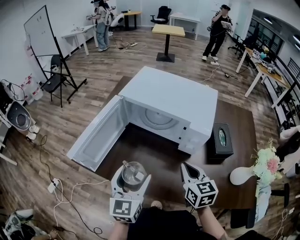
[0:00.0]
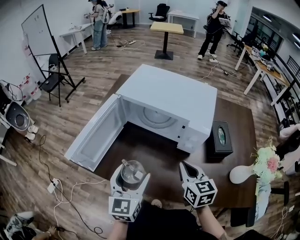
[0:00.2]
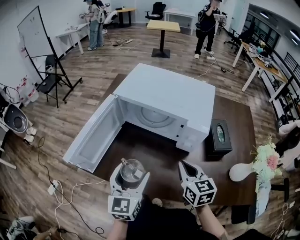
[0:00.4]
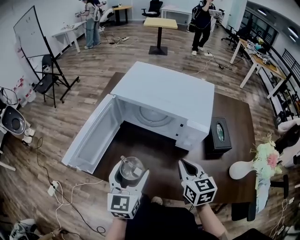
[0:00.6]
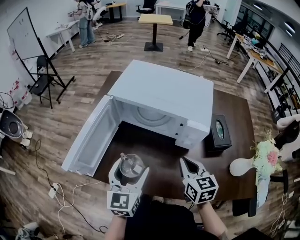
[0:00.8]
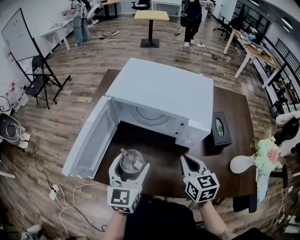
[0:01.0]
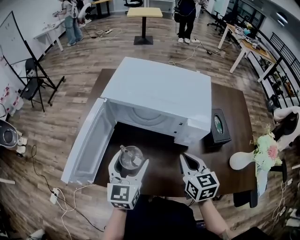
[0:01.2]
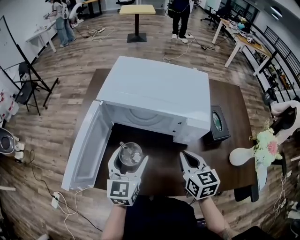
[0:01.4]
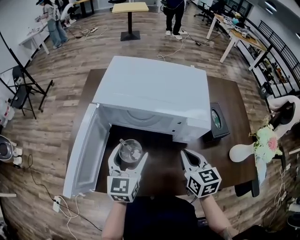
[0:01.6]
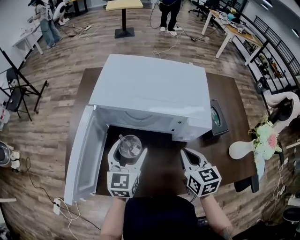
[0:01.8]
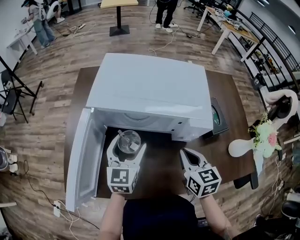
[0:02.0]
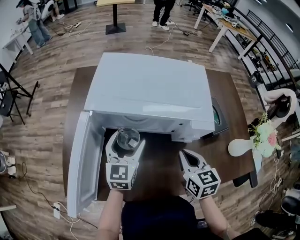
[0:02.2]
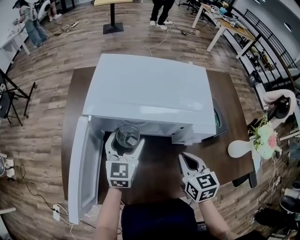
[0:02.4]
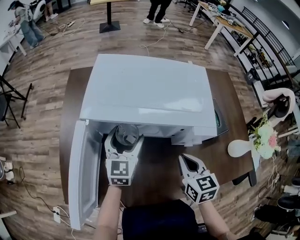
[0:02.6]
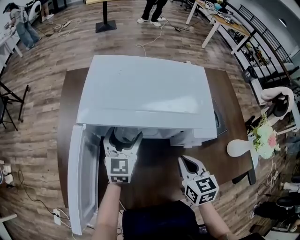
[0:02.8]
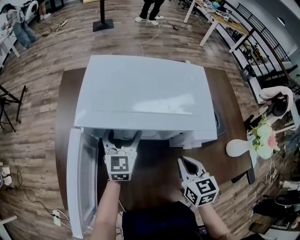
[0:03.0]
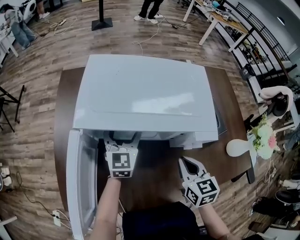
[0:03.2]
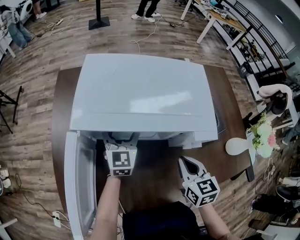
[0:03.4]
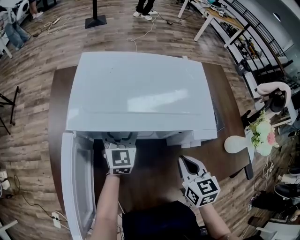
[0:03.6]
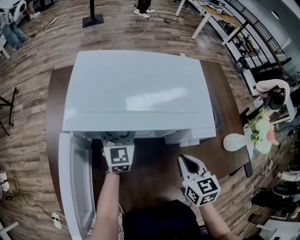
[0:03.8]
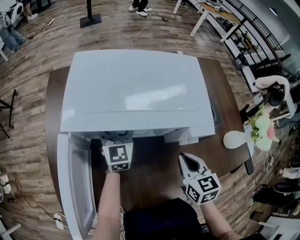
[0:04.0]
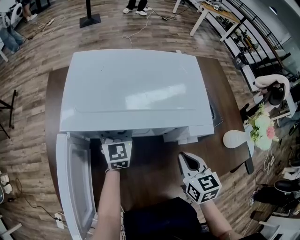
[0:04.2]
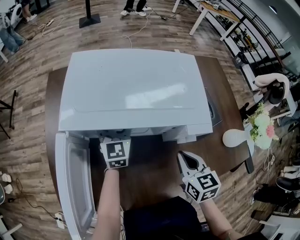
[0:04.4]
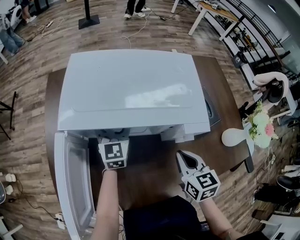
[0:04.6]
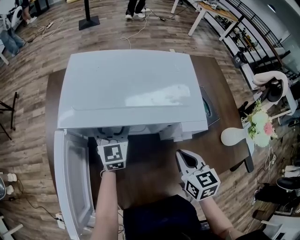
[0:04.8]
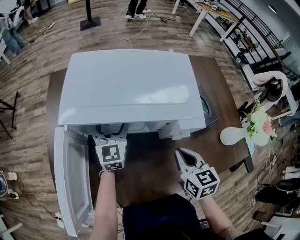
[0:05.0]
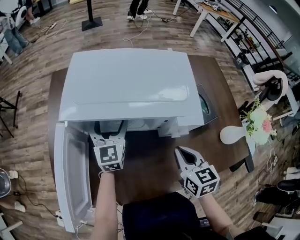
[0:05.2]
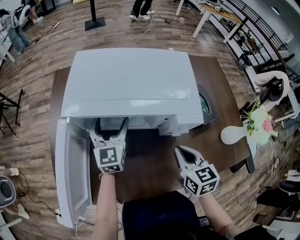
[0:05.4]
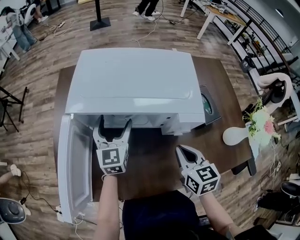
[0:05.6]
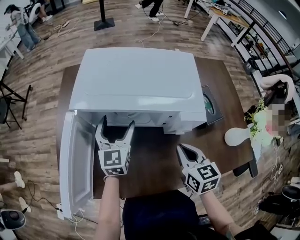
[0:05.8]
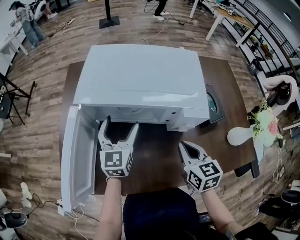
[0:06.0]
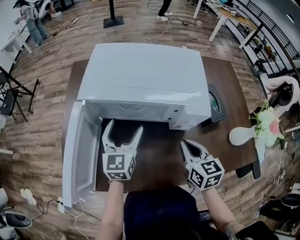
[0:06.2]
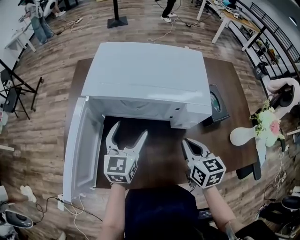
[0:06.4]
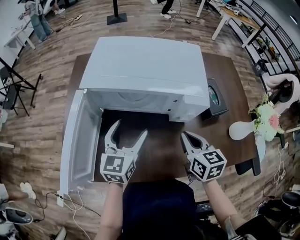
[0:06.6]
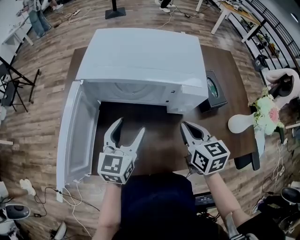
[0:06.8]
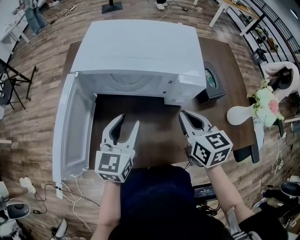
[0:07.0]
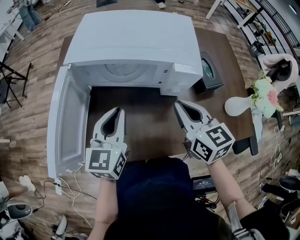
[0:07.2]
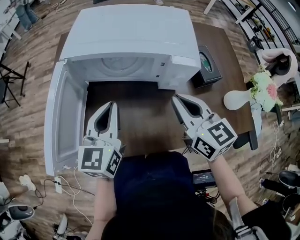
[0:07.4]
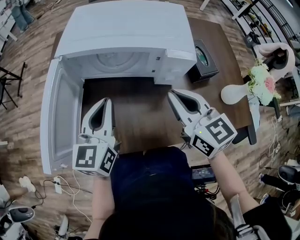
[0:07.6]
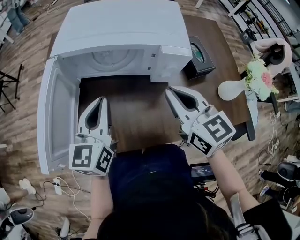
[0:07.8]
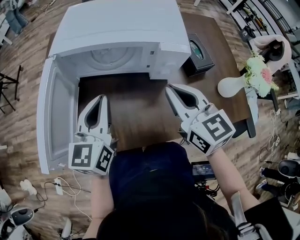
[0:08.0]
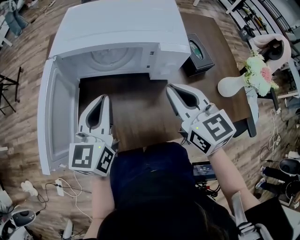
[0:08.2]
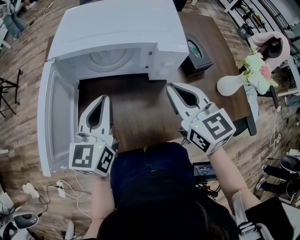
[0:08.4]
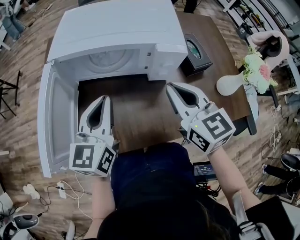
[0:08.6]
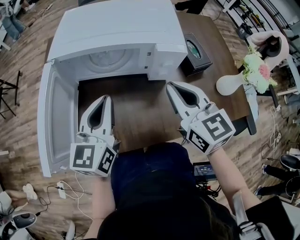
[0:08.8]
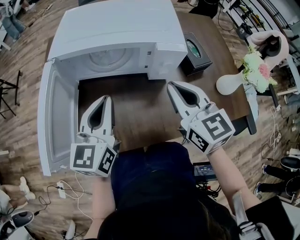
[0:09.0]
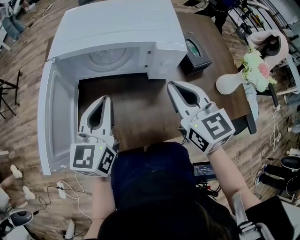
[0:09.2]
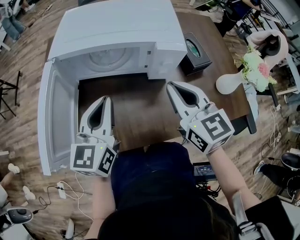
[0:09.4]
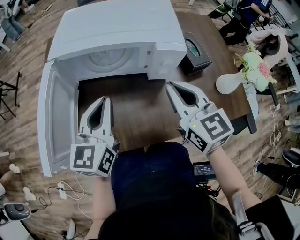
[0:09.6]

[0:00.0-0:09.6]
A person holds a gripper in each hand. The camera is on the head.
0:00.0 to 0:01.6: The left gripper is displaced forward by approximately 15 cm. The right gripper heads forward, covering some 5 cm.
0:01.6 to 0:03.2: The left gripper heads forward, covering about 20 cm.
0:03.2 to 0:04.8: The grippers make only small movements.
0:04.8 to 0:06.4: The left gripper heads backward, covering some 15 cm.
0:06.4 to 0:08.0: The right gripper heads upward, covering about 10 cm, and changes its angle by roughly 20 degrees, while the left gripper heads backward and upward, covering roughly 10 cm, and closes.
0:08.0 to 0:09.6: The grippers move only a little.

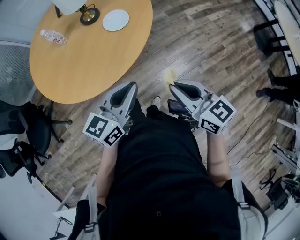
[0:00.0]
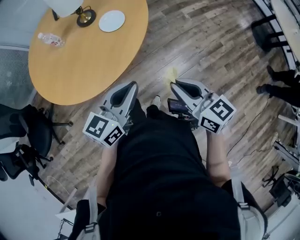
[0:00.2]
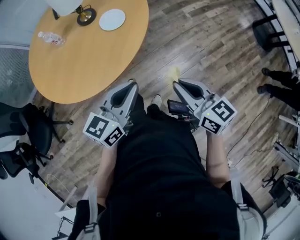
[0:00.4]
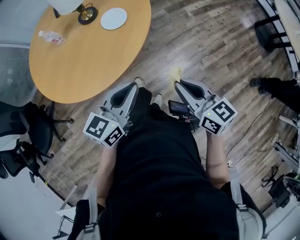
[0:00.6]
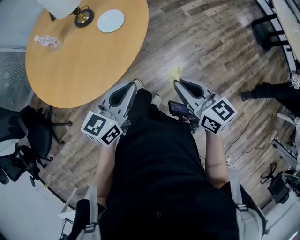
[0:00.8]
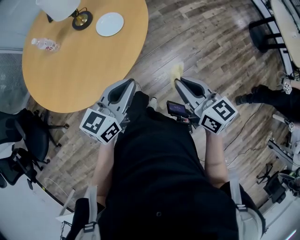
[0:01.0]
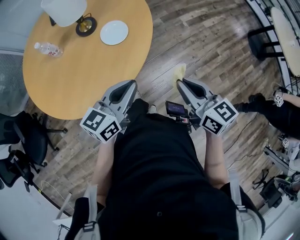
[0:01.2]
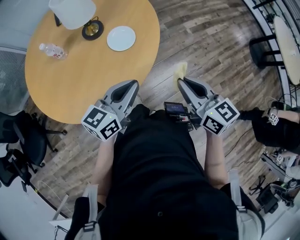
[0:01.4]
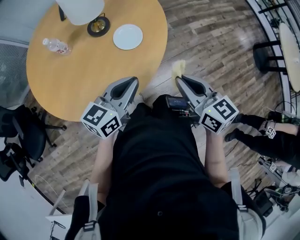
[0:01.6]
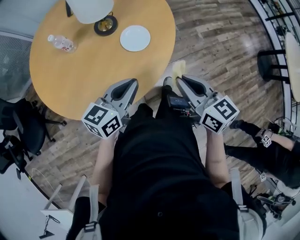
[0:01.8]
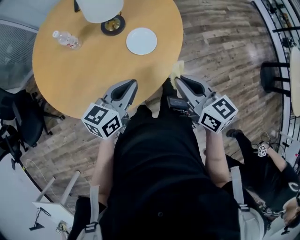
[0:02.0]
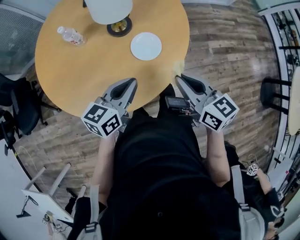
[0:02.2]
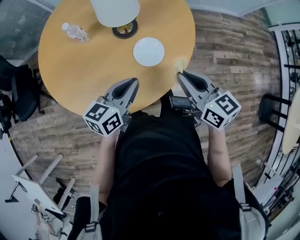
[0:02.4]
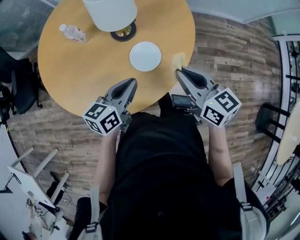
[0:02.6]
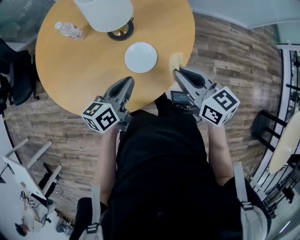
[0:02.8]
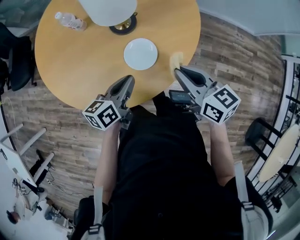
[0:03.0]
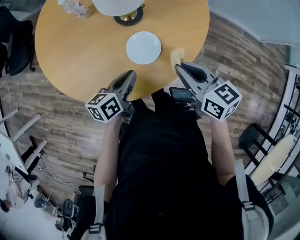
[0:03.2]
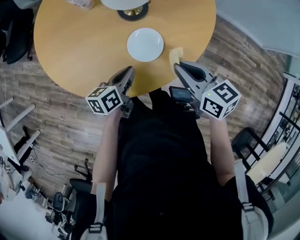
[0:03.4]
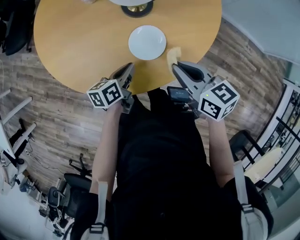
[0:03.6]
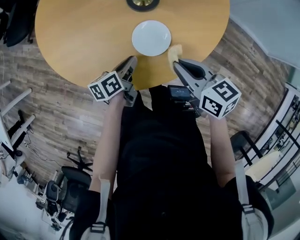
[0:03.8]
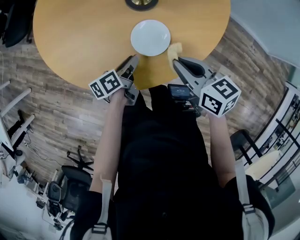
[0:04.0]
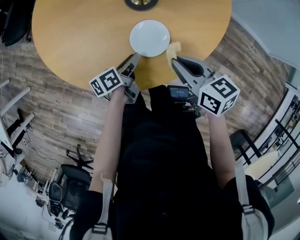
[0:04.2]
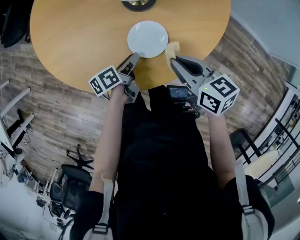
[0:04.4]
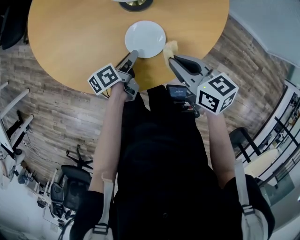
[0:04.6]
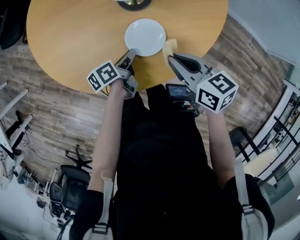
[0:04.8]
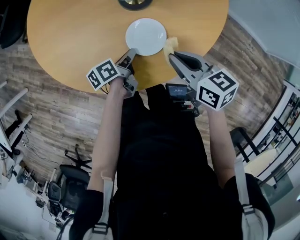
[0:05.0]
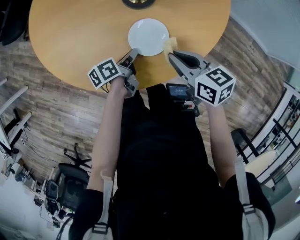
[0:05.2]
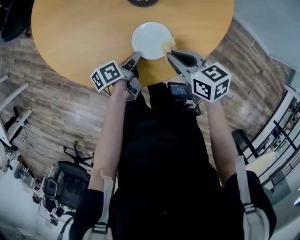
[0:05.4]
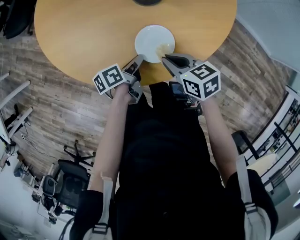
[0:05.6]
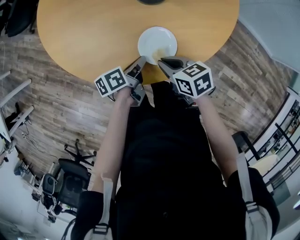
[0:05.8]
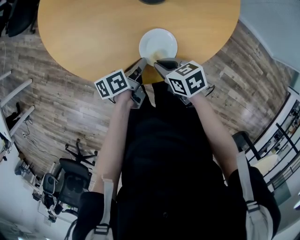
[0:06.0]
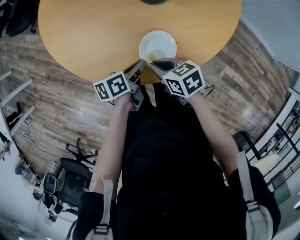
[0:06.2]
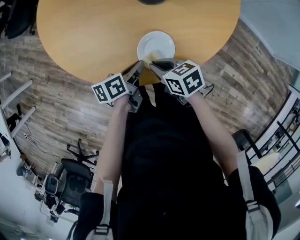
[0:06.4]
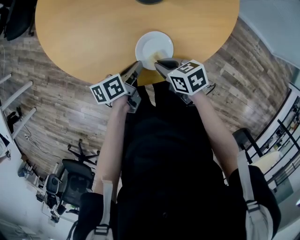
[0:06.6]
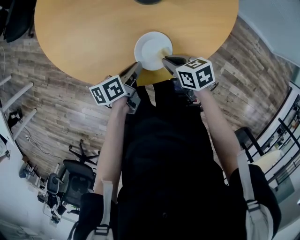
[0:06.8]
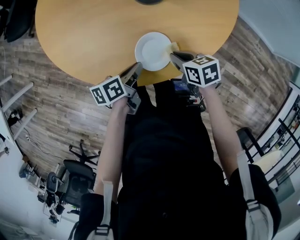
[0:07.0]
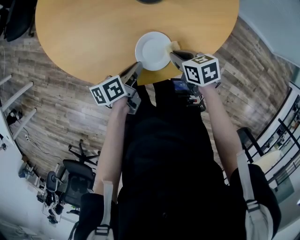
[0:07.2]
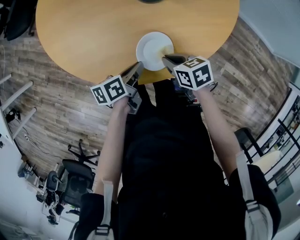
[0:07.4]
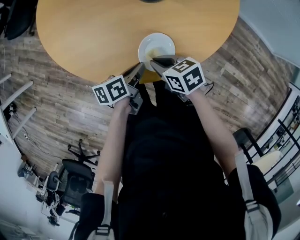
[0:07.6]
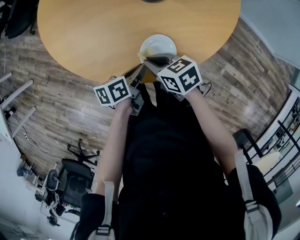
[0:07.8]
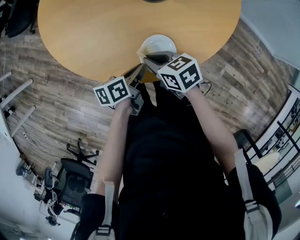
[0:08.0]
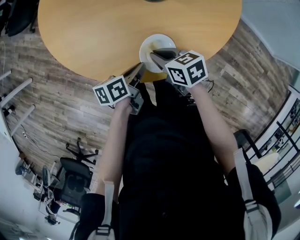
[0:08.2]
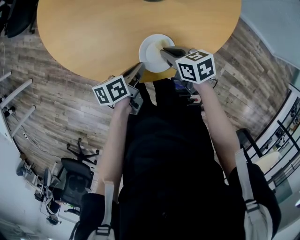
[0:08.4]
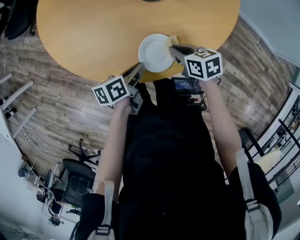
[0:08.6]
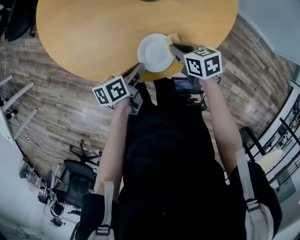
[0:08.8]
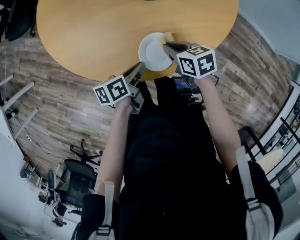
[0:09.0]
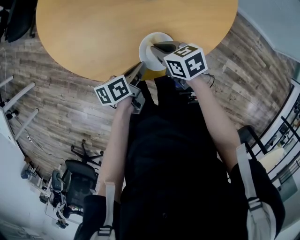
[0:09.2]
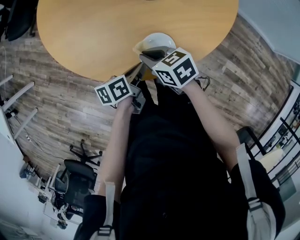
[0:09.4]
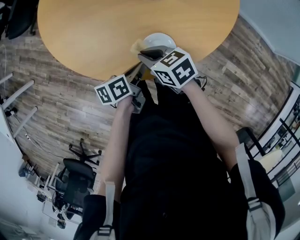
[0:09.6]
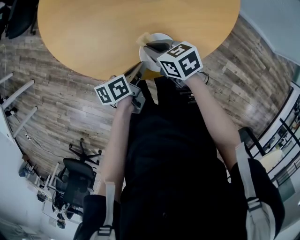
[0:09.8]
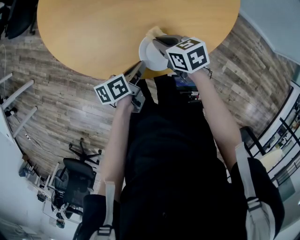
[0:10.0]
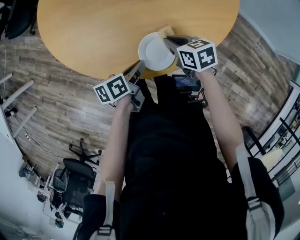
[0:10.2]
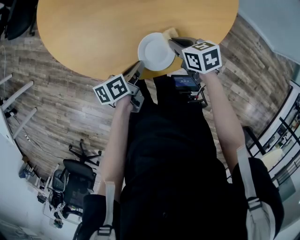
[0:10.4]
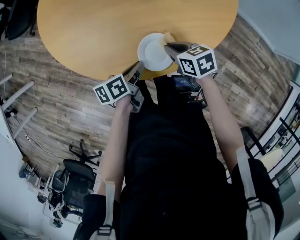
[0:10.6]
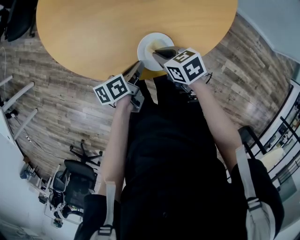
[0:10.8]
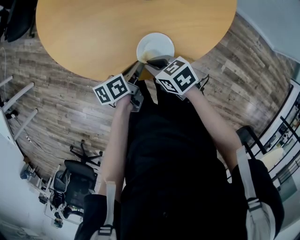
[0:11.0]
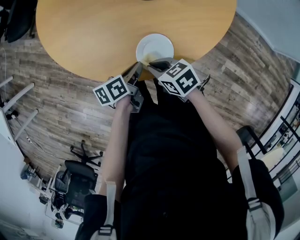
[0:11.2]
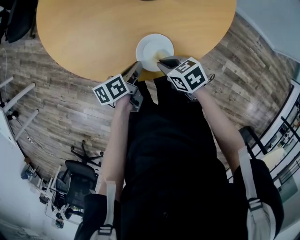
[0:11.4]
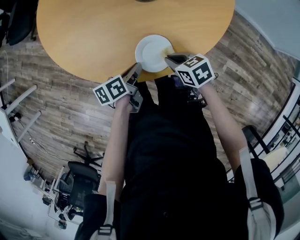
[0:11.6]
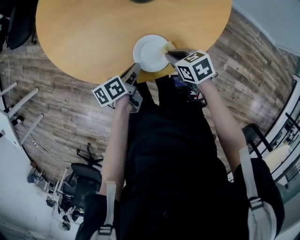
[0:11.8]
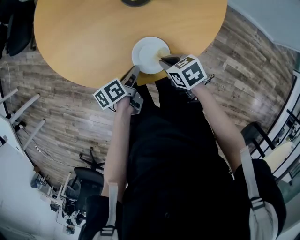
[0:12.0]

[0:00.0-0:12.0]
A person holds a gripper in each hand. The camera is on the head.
0:00.0 to 0:01.6: Both grippers travel together forward, about 15 cm.
0:01.6 to 0:03.0: The right gripper moves about 30 cm, and changes its angle by approximately 40 degrees. The left gripper moves some 20 cm, and changes its angle by roughly 50 degrees.
0:03.0 to 0:04.4: The right gripper shifts approximately 10 cm downward and forward. Meanwhile the left gripper goes roughly 15 cm downward, changes its angle by roughly 40 degrees, and opens.
0:04.4 to 0:06.0: The right gripper is displaced downward and to the left by approximately 15 cm, and swivels about 20 degrees. Meanwhile the left gripper ends up about 5 cm from where it was, and closes up.
0:06.0 to 0:07.6: The right gripper travels to the right and back again, about 5 cm each way.
0:07.6 to 0:09.0: The right gripper moves to the right, about 5 cm.
0:09.0 to 0:10.4: The right gripper travels to the left and back again, approximately 10 cm each way.
0:10.4 to 0:12.0: The right gripper is displaced backward by approximately 5 cm, and moves roughly 10 cm to the left and comes back.

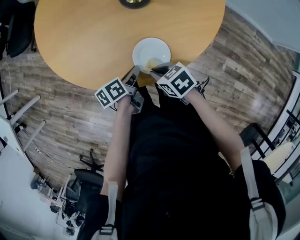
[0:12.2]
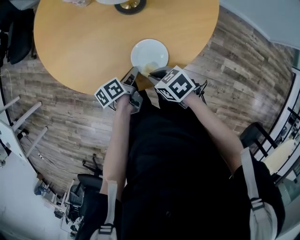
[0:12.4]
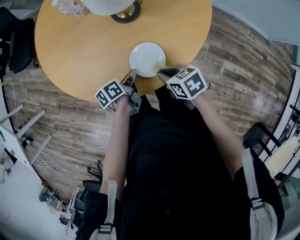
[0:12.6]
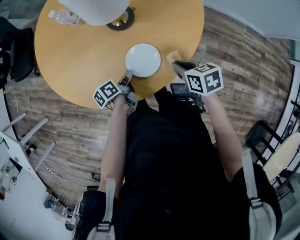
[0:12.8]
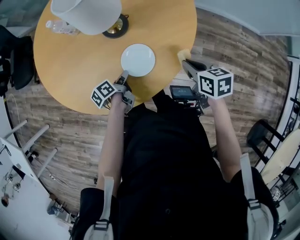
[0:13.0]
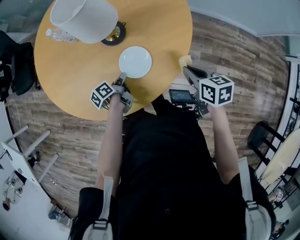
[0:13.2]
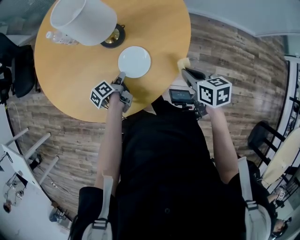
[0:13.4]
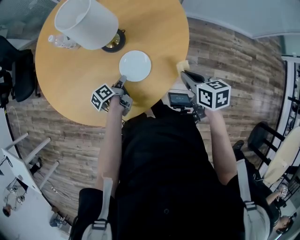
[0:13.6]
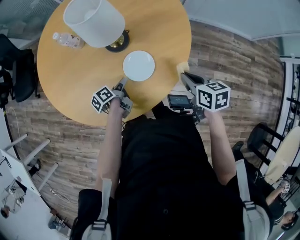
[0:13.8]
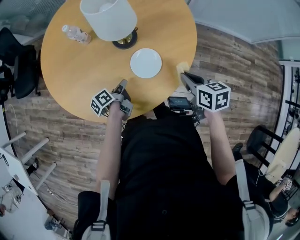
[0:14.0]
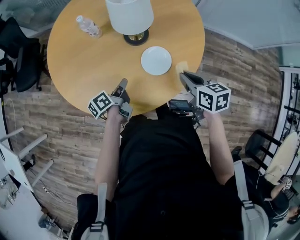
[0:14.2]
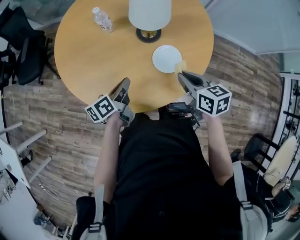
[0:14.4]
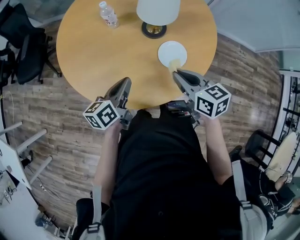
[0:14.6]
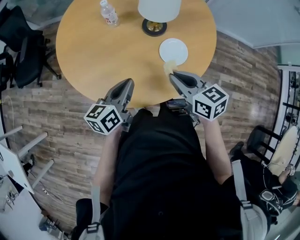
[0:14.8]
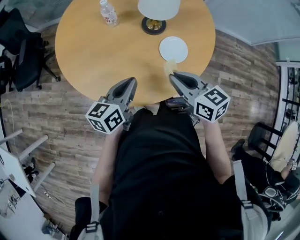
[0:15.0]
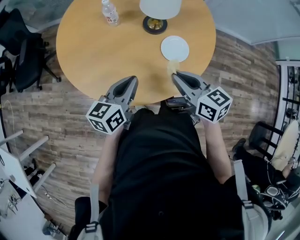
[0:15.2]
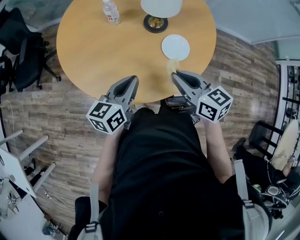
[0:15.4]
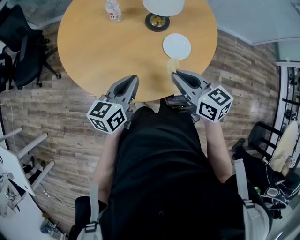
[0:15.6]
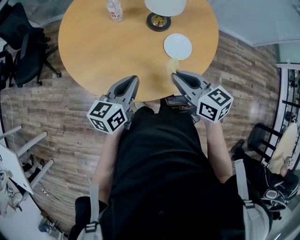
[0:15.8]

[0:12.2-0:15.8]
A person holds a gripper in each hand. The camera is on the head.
0:12.2 to 0:14.0: The right gripper shifts by approximately 20 cm, and swivels some 40 degrees, while the left gripper changes place by some 10 cm.
0:14.0 to 0:15.8: The right gripper moves to the left, about 25 cm, and changes its angle by roughly 20 degrees. The left gripper moves upward, to the left and backward, roughly 25 cm, and twists about 50 degrees clockwise, seen from behind.
